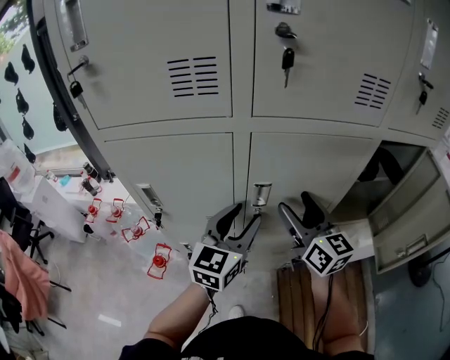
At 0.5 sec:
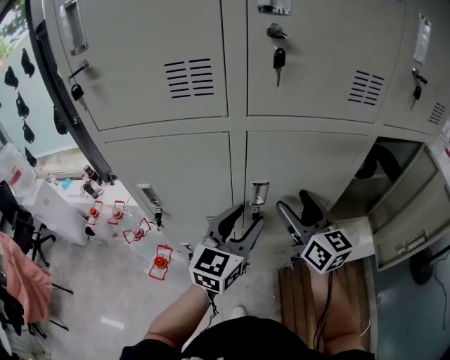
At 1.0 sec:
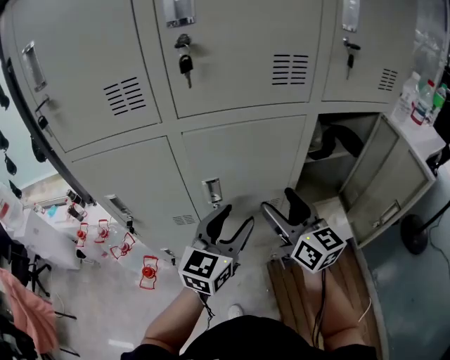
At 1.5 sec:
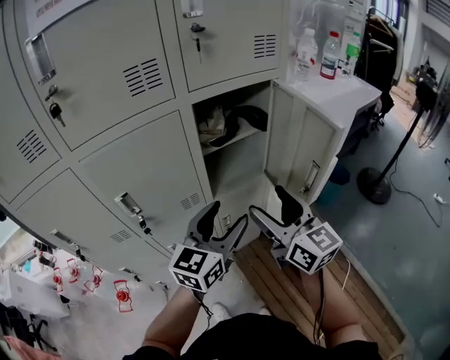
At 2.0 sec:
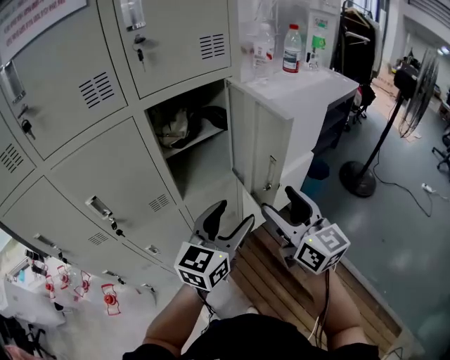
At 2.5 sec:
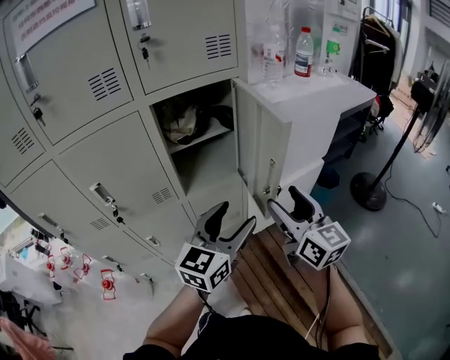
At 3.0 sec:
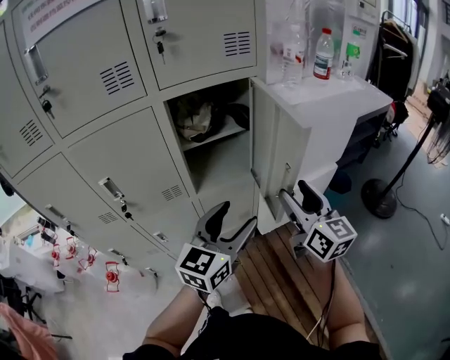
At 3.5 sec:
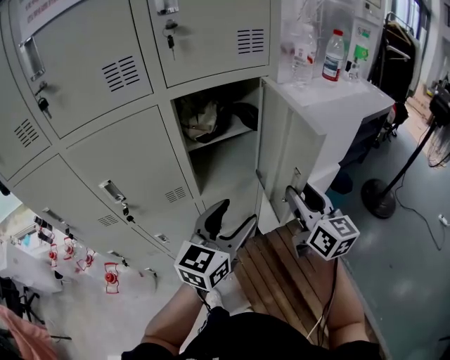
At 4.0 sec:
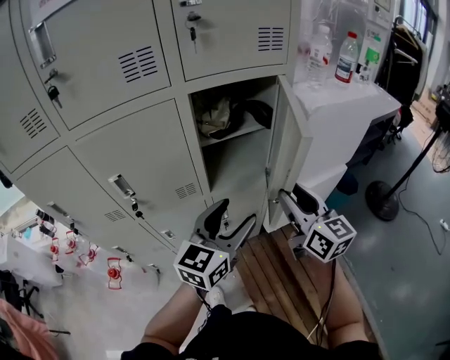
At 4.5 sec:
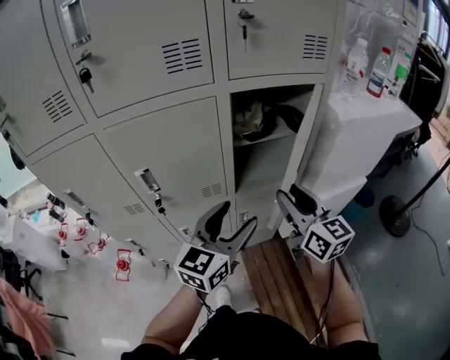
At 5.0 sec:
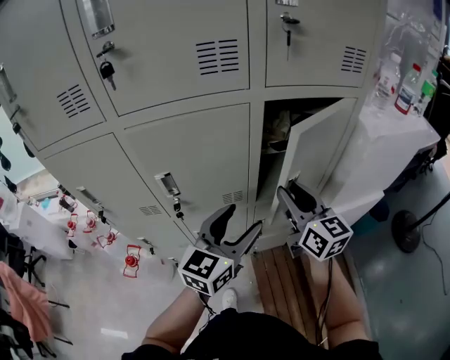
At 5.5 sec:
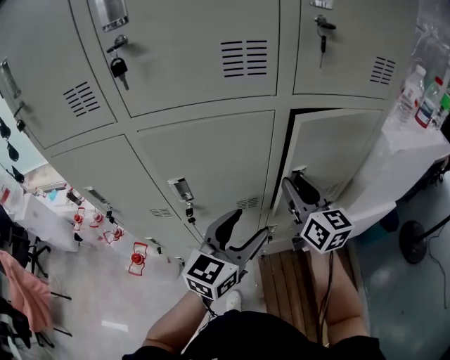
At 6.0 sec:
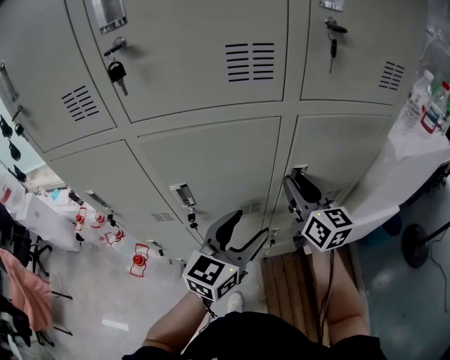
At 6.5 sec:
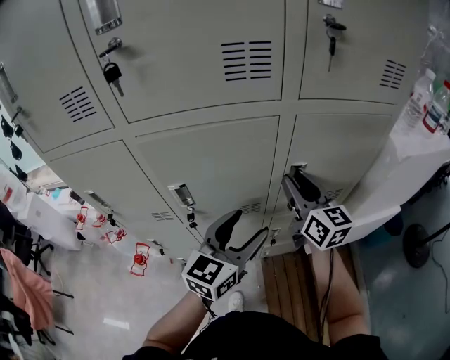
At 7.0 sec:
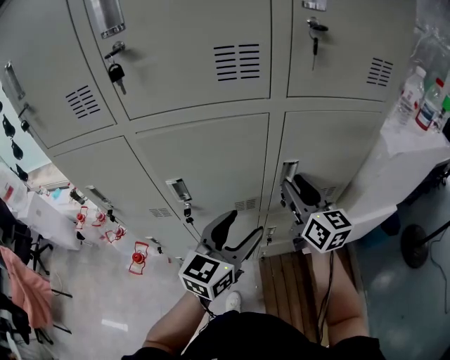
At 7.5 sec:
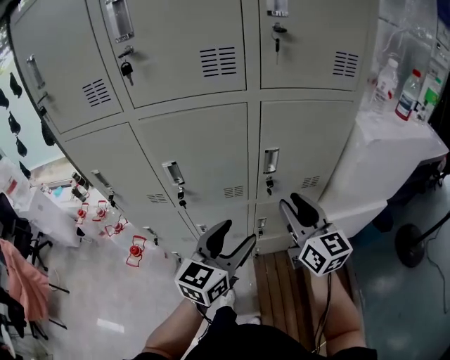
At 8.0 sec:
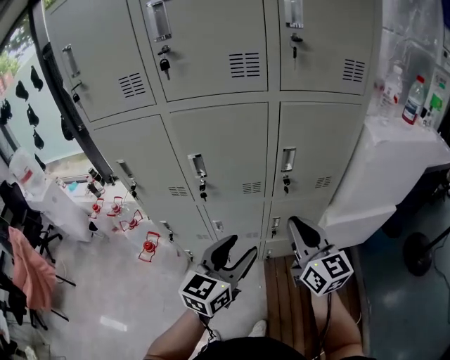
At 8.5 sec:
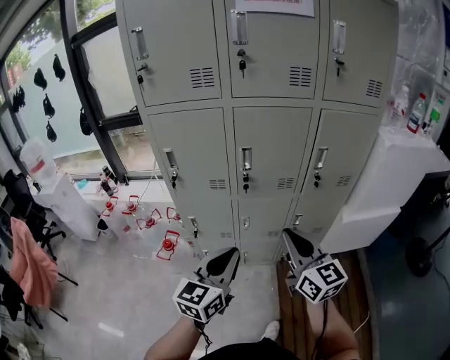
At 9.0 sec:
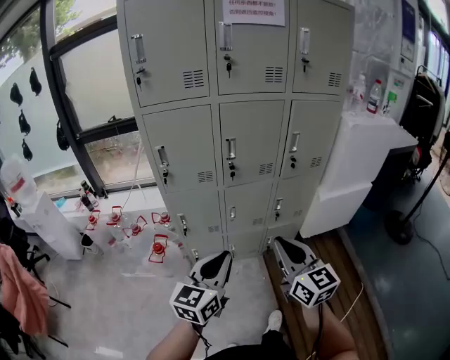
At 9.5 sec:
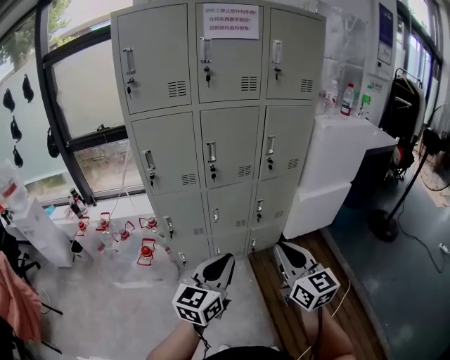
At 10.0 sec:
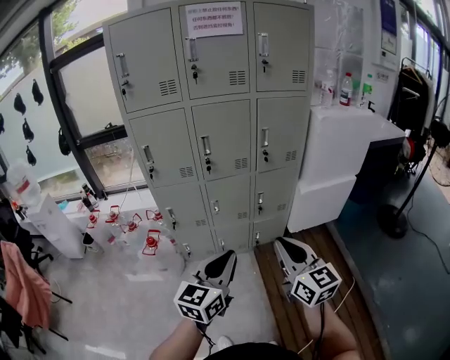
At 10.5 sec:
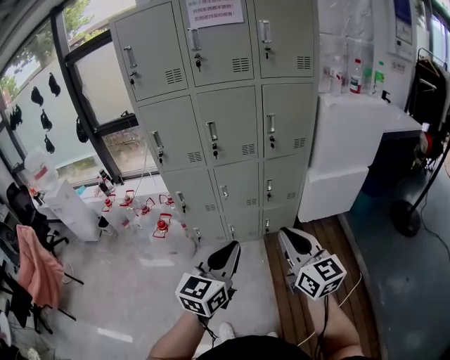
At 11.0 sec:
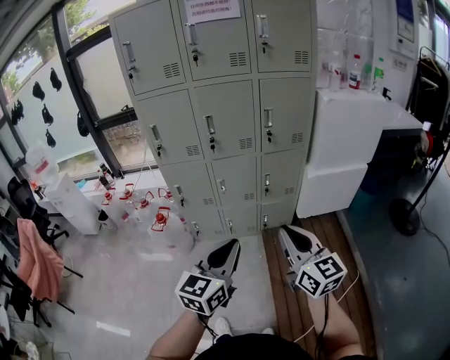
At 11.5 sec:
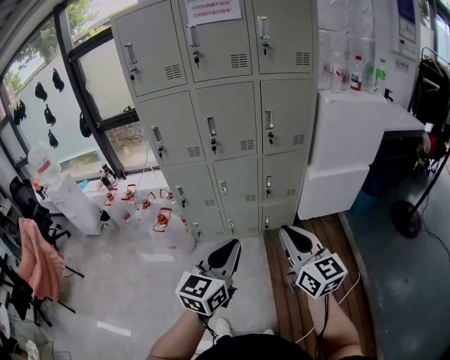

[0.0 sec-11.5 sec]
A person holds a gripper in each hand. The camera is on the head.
0.0 sec to 2.0 sec: Both grippers are carried roughly 40 cm. The left gripper swivels roughly 30 degrees. The right gripper swivels some 30 degrees.
2.0 sec to 4.0 sec: The left gripper heads to the left, covering approximately 5 cm. The right gripper heads forward and to the left, covering about 10 cm, and closes its fingers.
4.0 sec to 6.0 sec: Both grippers move to the left and forward, some 20 cm.
6.0 sec to 7.5 sec: The left gripper goes some 10 cm backward, while the right gripper heads backward and to the right, covering about 15 cm.
7.5 sec to 9.5 sec: The right gripper goes about 40 cm backward, and closes. Meanwhile the left gripper goes some 40 cm backward and to the left, and closes.
9.5 sec to 11.5 sec: Both grippers move to the right and backward, about 15 cm.

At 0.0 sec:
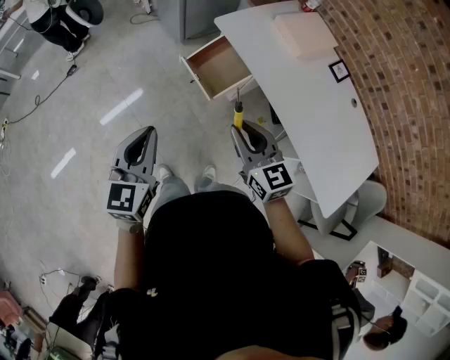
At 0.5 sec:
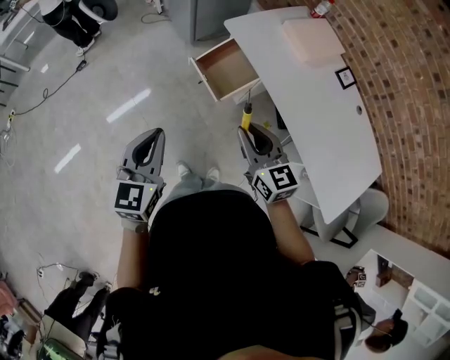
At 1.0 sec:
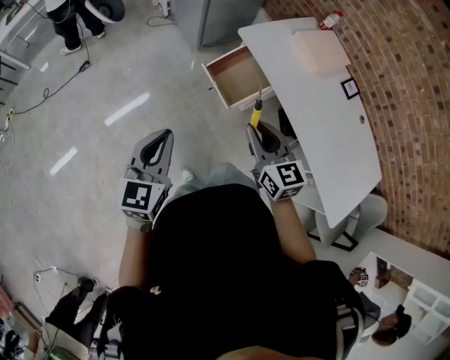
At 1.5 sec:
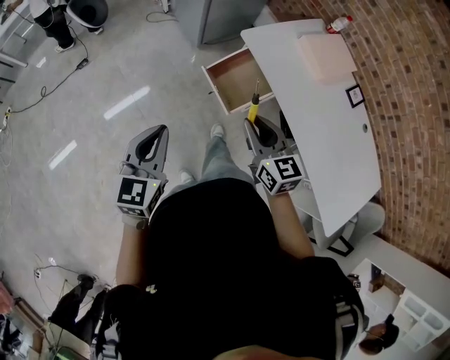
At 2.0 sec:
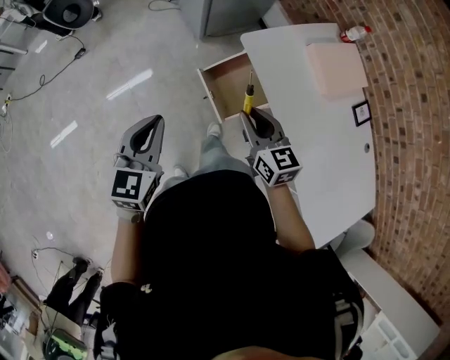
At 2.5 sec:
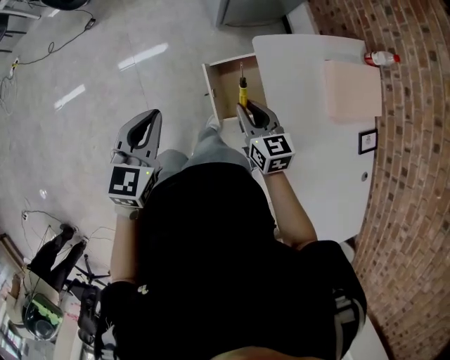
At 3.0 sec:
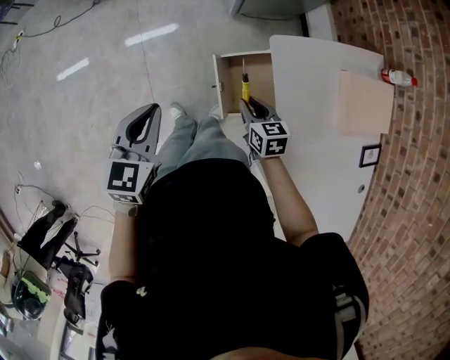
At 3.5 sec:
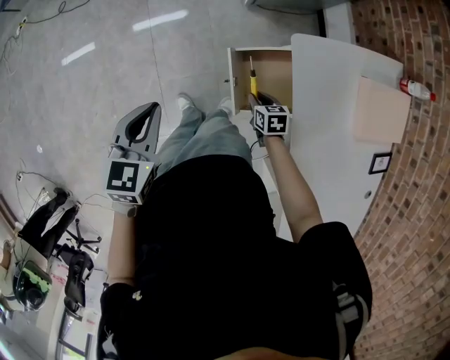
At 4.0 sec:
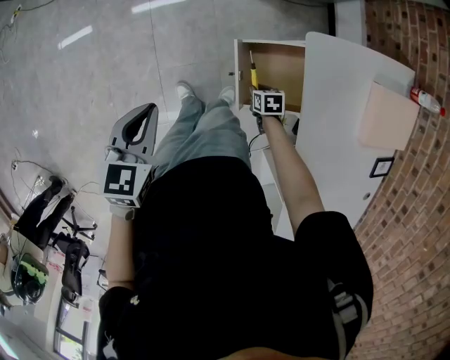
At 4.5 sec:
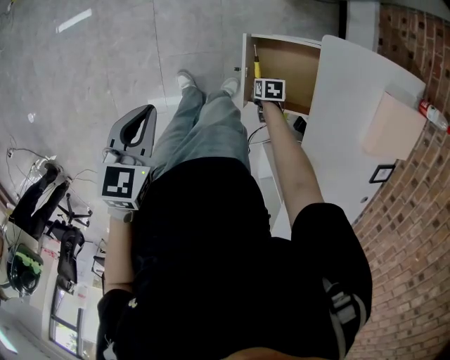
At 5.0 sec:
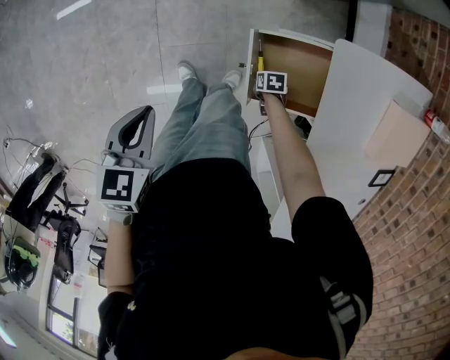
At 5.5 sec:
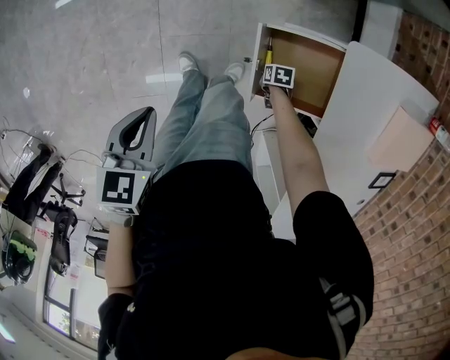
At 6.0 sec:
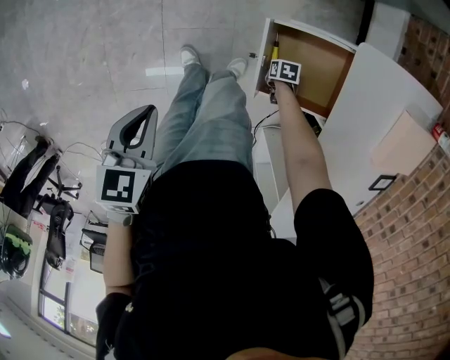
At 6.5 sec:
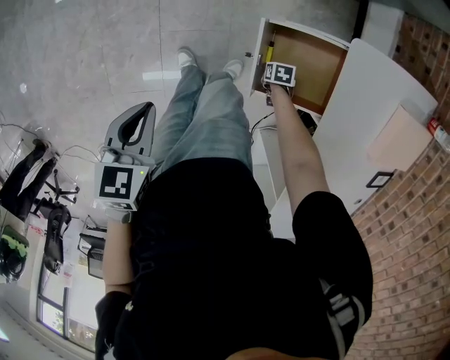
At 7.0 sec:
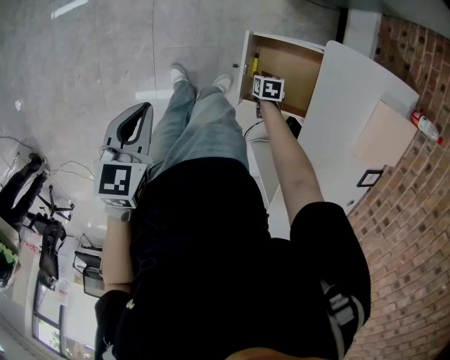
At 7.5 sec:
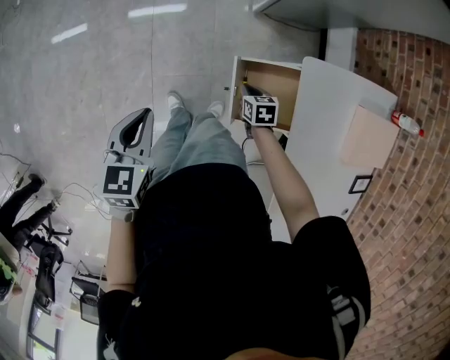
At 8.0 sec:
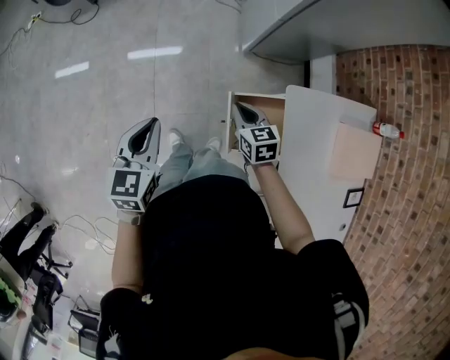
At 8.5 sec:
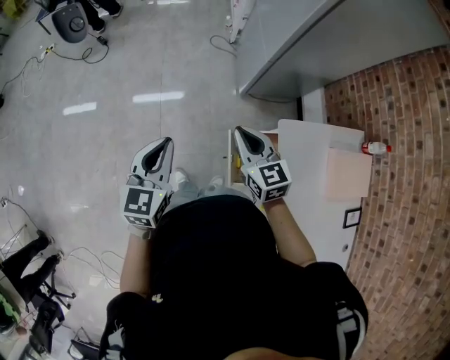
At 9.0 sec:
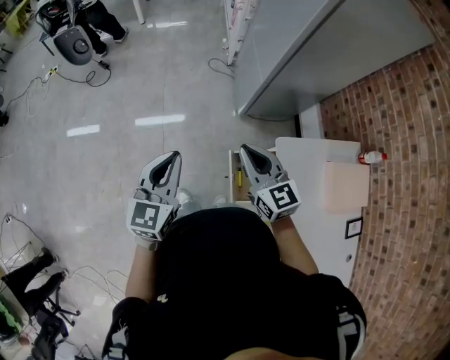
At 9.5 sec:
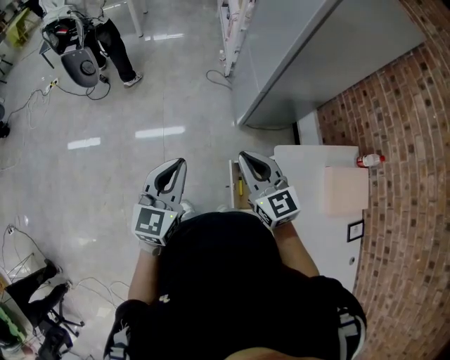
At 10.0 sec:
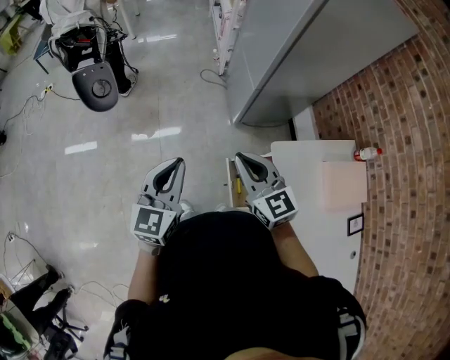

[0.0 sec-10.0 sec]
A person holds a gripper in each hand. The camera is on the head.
0.0 sec to 2.0 sec: The two grippers go about 20 cm forward.
2.0 sec to 4.0 sec: The left gripper travels downward by roughly 15 cm, and rotates some 30 degrees, while the right gripper is displaced downward by approximately 40 cm, and points its fingers roughly 50 degrees further downward.
4.0 sec to 6.0 sec: The left gripper moves downward, some 10 cm. The right gripper heads downward, covering approximately 15 cm.
6.0 sec to 8.0 sec: The right gripper goes some 40 cm upward, and tips its fingers upward by approximately 40 degrees, while the left gripper moves upward, some 15 cm, and rotates about 30 degrees.
8.0 sec to 10.0 sec: The left gripper goes roughly 15 cm upward, and rotates about 20 degrees. Meanwhile the right gripper moves upward, some 25 cm, and swivels roughly 30 degrees.

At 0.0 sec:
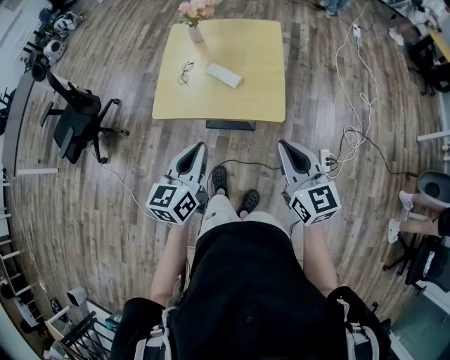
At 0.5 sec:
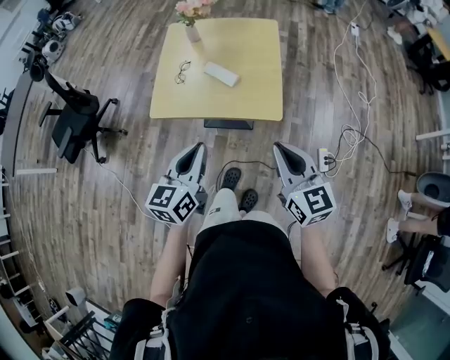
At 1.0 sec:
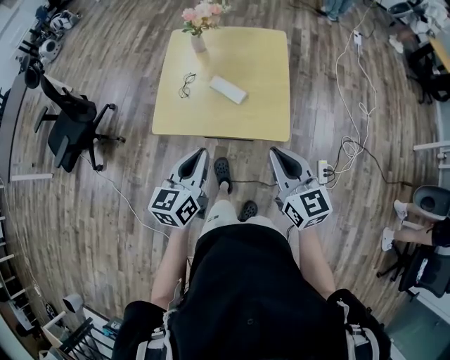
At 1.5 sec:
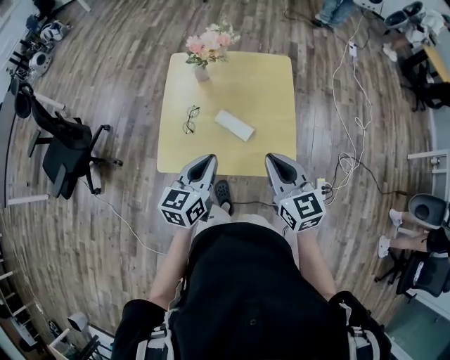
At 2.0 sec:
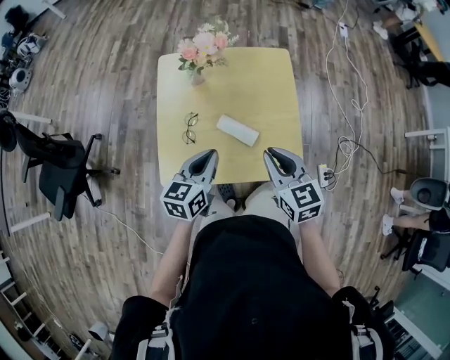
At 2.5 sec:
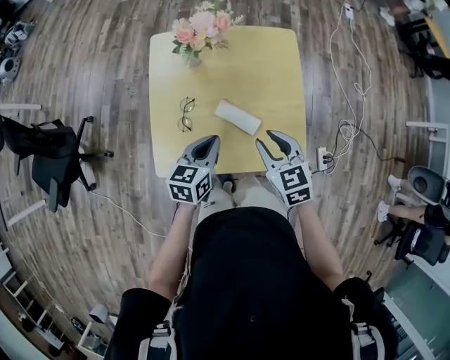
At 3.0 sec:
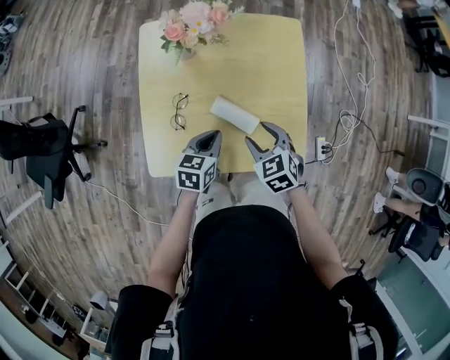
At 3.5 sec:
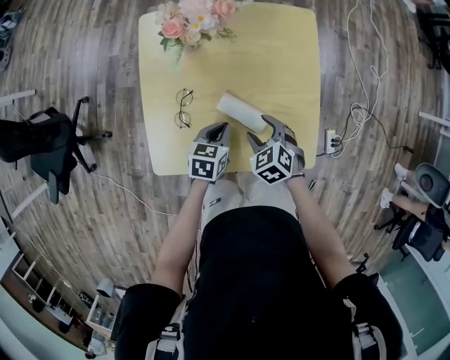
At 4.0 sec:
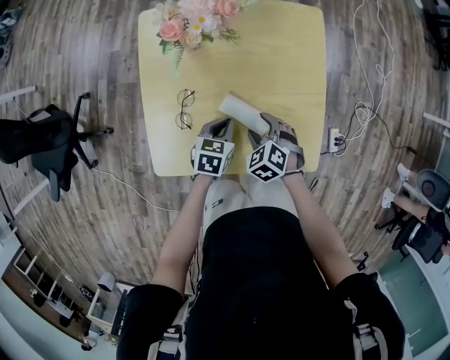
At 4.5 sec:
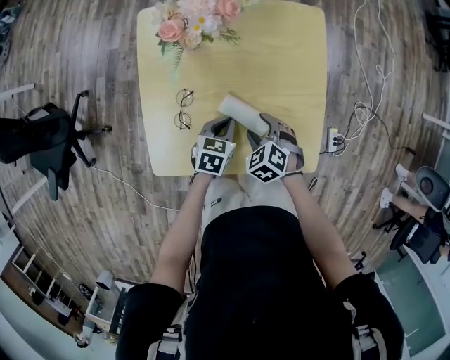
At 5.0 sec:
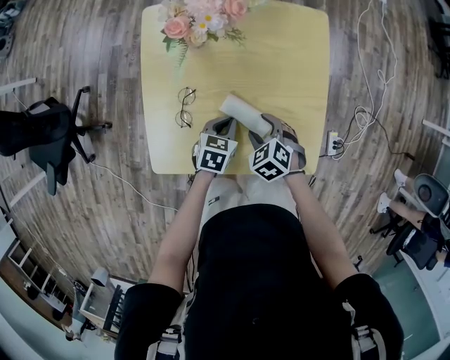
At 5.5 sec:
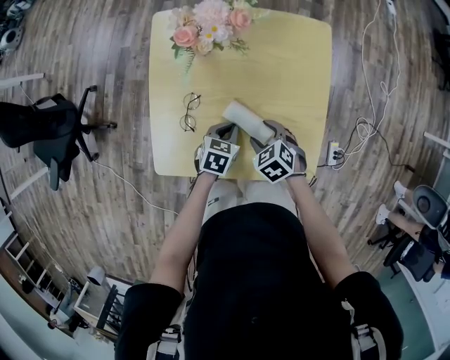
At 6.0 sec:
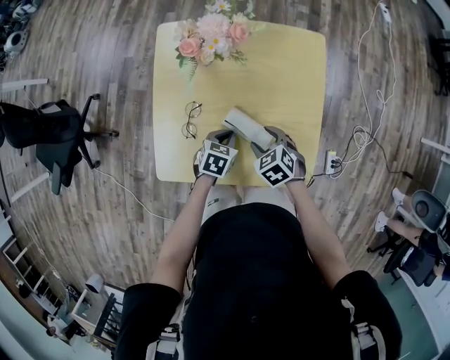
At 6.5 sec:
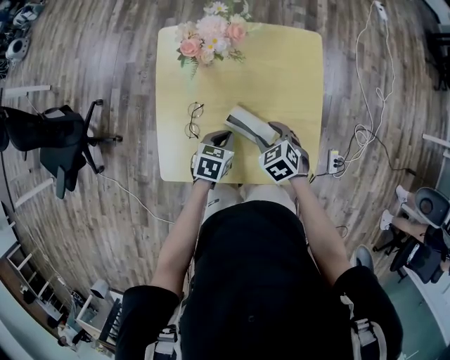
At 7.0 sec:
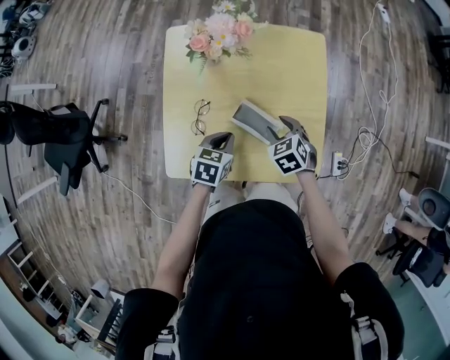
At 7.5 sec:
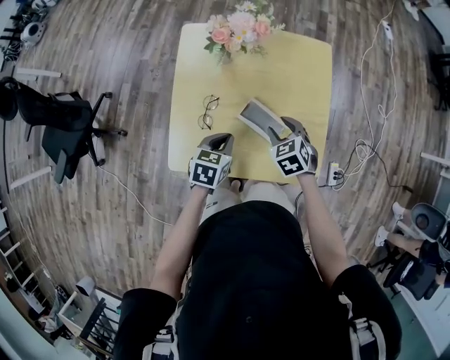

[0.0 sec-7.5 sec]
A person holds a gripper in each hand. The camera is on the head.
0.0 sec to 2.0 sec: The right gripper is displaced forward and to the left by about 35 cm. The left gripper moves forward, approximately 35 cm.
2.0 sec to 4.0 sec: The right gripper goes approximately 25 cm downward, tips its fingers downward by about 40 degrees, and opens up, while the left gripper travels downward and forward by approximately 25 cm, and swivels roughly 30 degrees.
4.0 sec to 5.5 sec: The grippers make only small movements.
5.5 sec to 7.5 sec: The right gripper heads upward, covering about 10 cm; the left gripper moves upward and to the left, about 15 cm.
